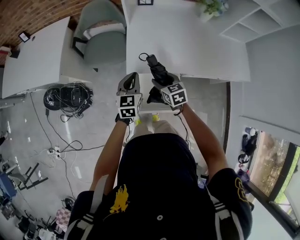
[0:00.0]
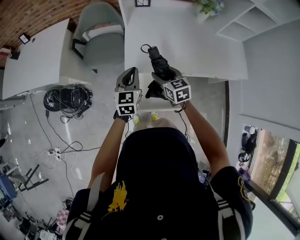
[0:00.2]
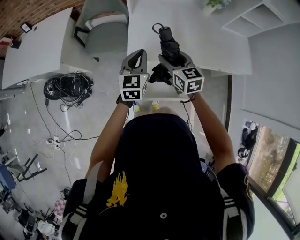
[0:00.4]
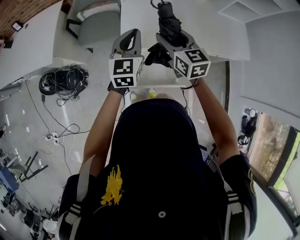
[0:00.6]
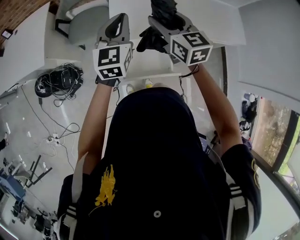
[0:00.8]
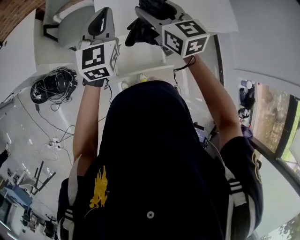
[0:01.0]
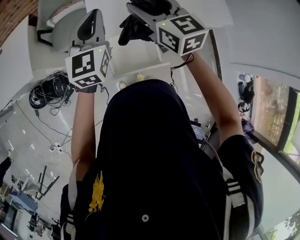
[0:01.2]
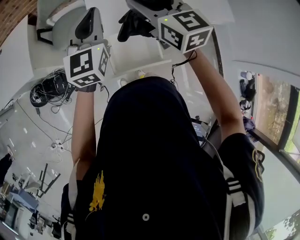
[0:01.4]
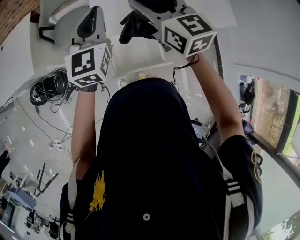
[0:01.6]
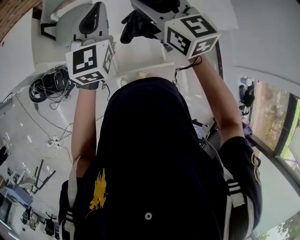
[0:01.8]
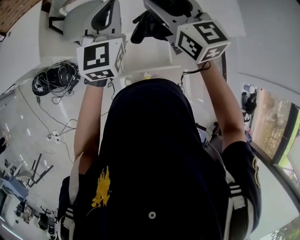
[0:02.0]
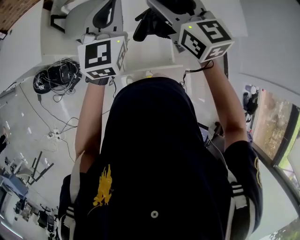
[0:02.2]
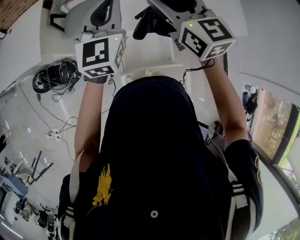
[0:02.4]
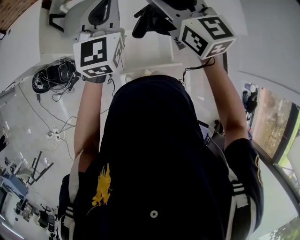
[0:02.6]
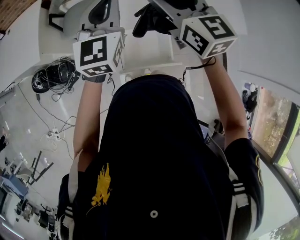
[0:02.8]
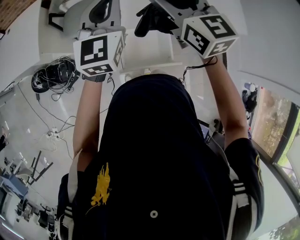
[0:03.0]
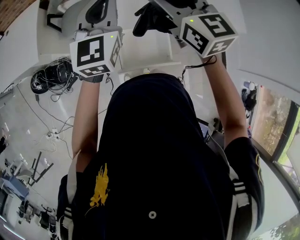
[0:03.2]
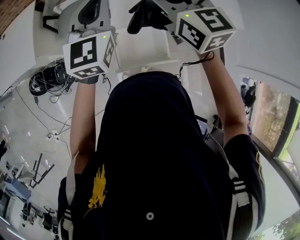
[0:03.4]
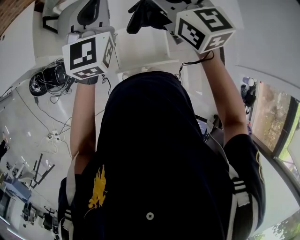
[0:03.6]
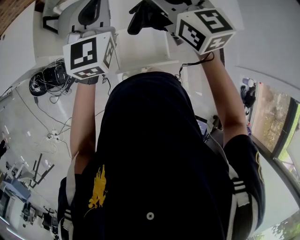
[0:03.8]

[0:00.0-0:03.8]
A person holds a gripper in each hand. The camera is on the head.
0:00.0 to 0:01.2: Both grippers move upward, roughly 25 cm. The left gripper changes its angle by some 20 degrees, while the right gripper changes its angle by approximately 30 degrees.
0:01.2 to 0:02.6: The right gripper ends up roughly 5 cm from where it was.
0:02.6 to 0:03.8: Neither gripper changes place.

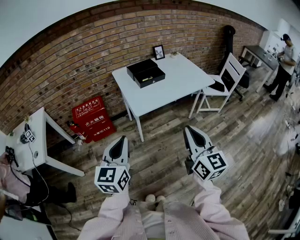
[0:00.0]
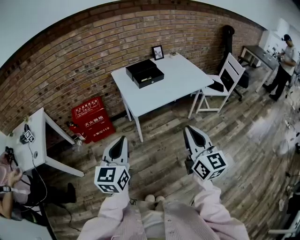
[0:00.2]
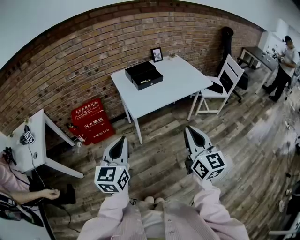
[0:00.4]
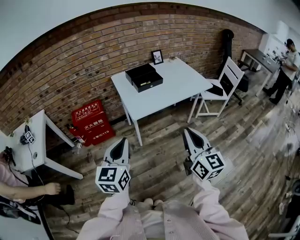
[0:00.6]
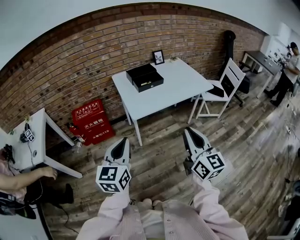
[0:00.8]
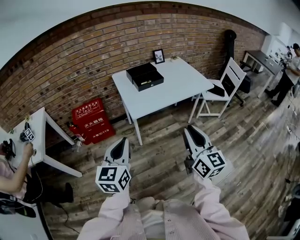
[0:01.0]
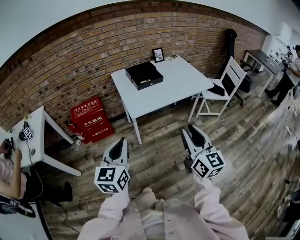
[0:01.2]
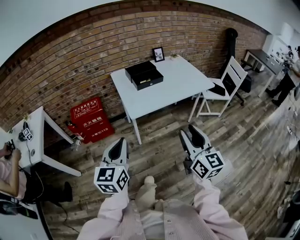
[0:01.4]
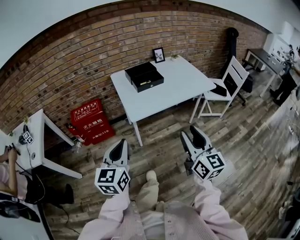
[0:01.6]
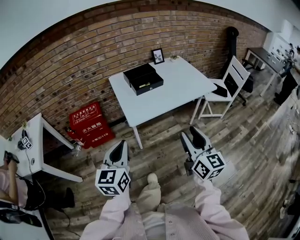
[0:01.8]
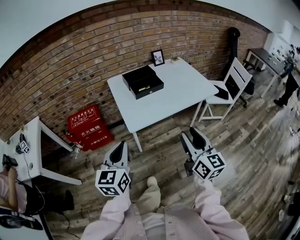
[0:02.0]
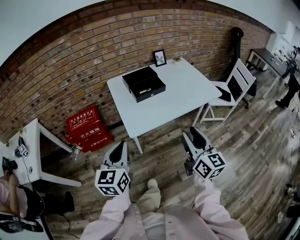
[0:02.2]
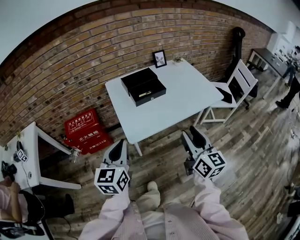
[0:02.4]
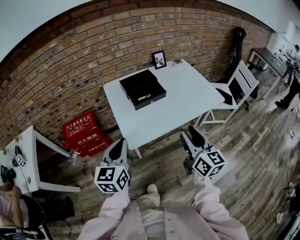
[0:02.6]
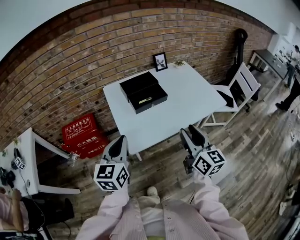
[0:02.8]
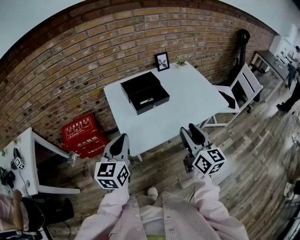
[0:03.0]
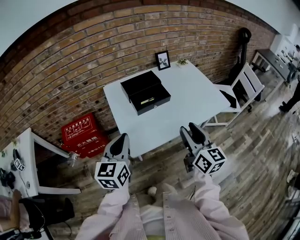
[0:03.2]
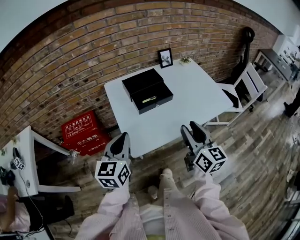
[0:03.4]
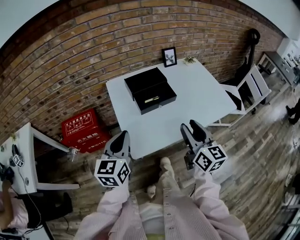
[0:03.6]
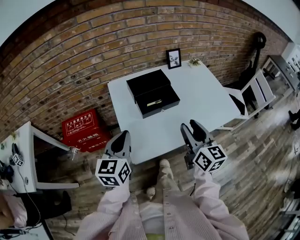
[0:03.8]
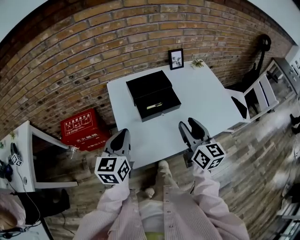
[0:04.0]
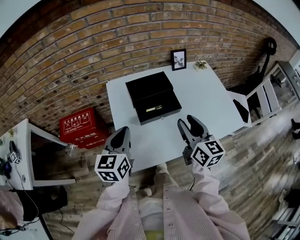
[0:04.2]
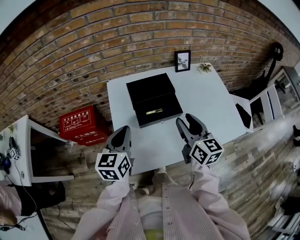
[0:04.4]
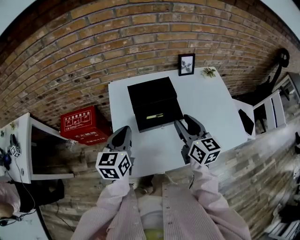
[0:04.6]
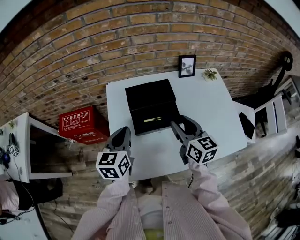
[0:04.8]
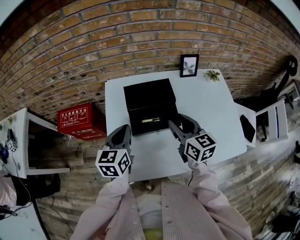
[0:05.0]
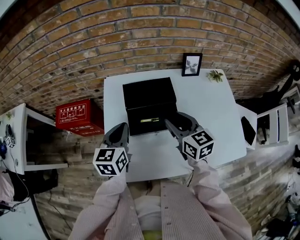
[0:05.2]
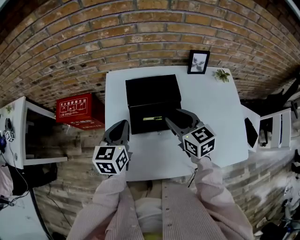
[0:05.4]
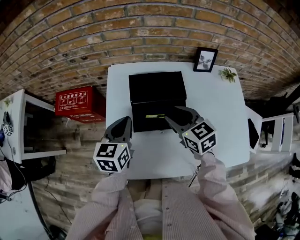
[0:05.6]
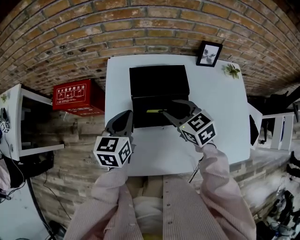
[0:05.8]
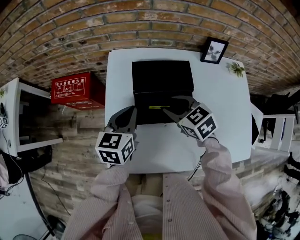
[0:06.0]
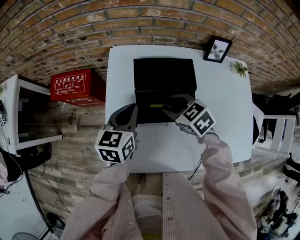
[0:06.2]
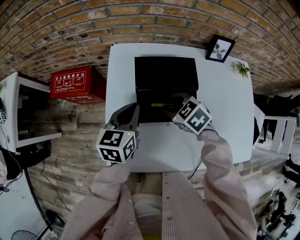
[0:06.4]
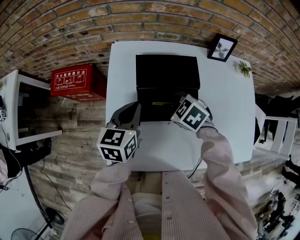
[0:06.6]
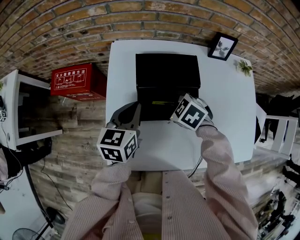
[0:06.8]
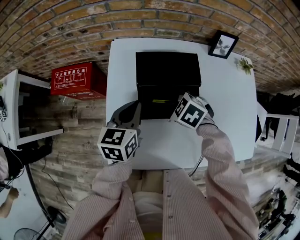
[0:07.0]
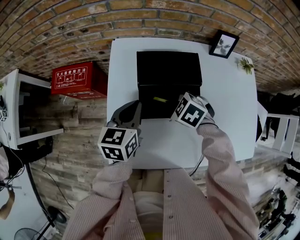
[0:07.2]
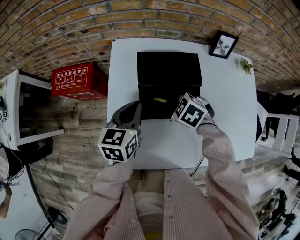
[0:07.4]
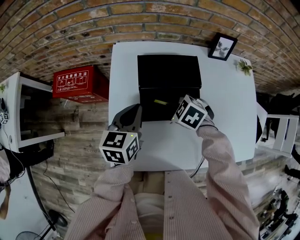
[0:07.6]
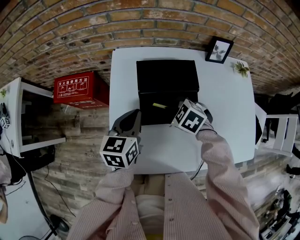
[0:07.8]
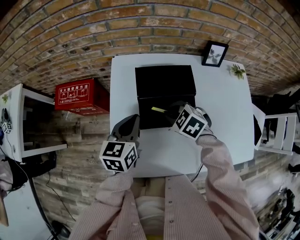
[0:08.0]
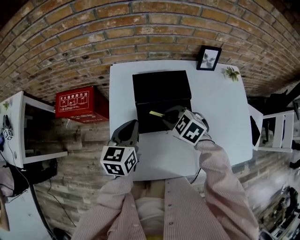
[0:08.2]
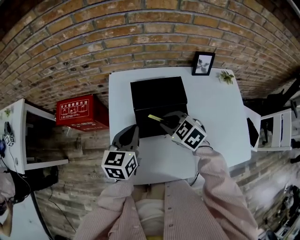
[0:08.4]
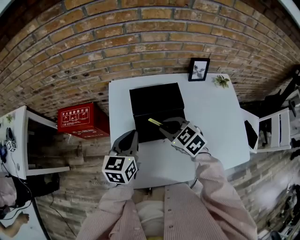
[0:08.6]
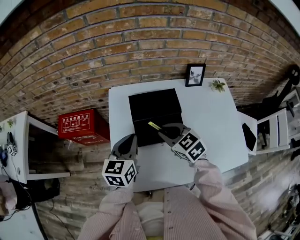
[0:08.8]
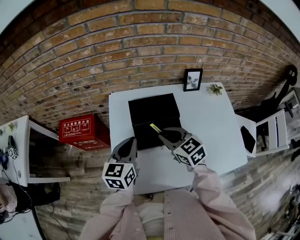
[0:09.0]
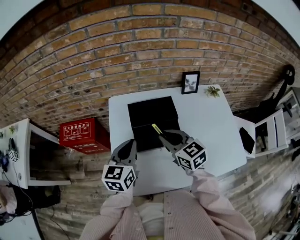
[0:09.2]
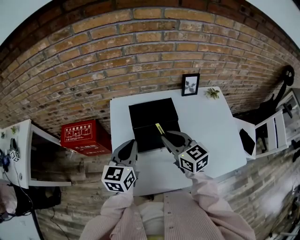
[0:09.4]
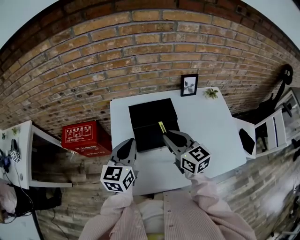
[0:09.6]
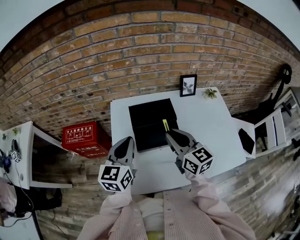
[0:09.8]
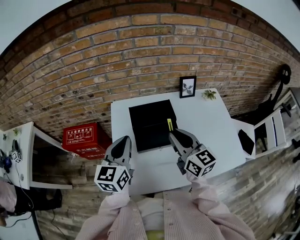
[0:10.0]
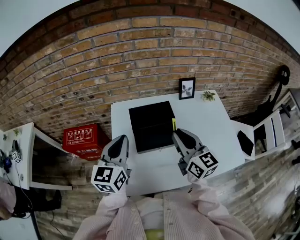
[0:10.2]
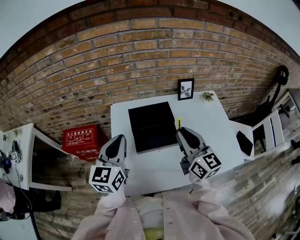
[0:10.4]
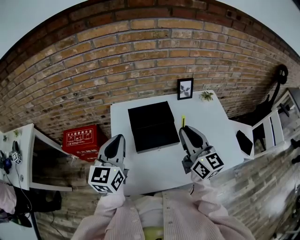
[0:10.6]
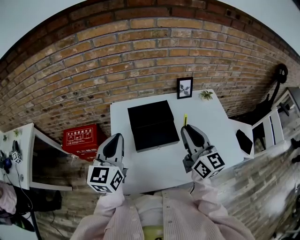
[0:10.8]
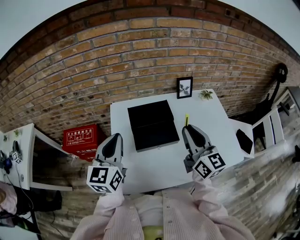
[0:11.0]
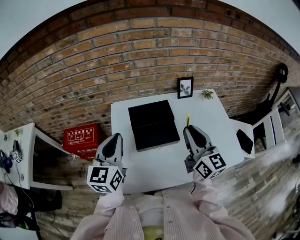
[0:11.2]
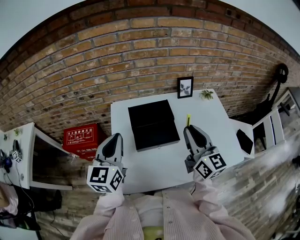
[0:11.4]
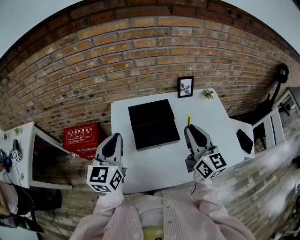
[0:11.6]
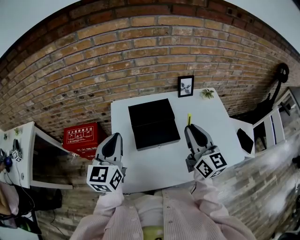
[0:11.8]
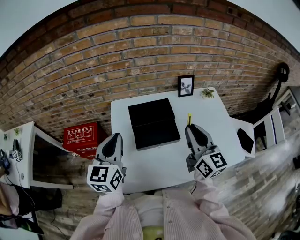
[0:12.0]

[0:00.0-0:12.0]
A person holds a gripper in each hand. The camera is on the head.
0:00.0 to 0:01.6: The left gripper shifts by approximately 5 cm; the right gripper shifts some 5 cm to the right, and opens.
0:01.6 to 0:03.0: The two grippers go approximately 25 cm forward.
0:03.0 to 0:04.4: Both grippers move forward, approximately 20 cm.
0:04.4 to 0:06.0: Both grippers travel together forward and downward, about 15 cm. The right gripper tips its fingers downward by approximately 30 degrees.
0:06.0 to 0:07.6: The right gripper is displaced downward by roughly 10 cm, swivels roughly 30 degrees, and closes its fingers.
0:07.6 to 0:09.0: The right gripper shifts some 15 cm upward, and tips its fingers upward by about 40 degrees. Meanwhile the left gripper is displaced upward by some 5 cm.
0:09.0 to 0:10.4: The left gripper is displaced upward by about 10 cm, while the right gripper goes some 15 cm upward, to the right and backward, and tilts its fingers some 30 degrees upward.
0:10.4 to 0:12.0: The grippers make only small movements.

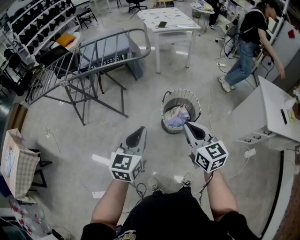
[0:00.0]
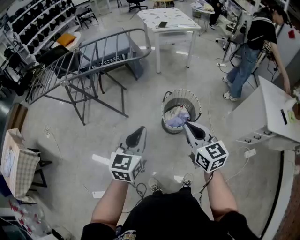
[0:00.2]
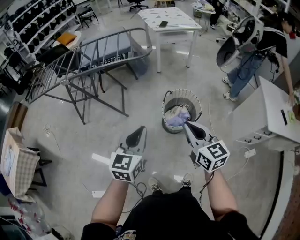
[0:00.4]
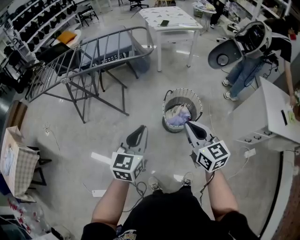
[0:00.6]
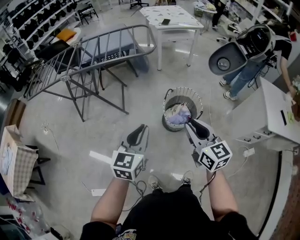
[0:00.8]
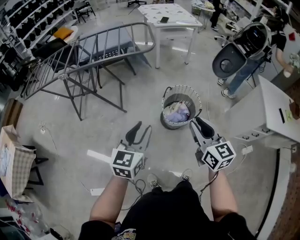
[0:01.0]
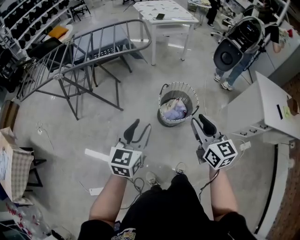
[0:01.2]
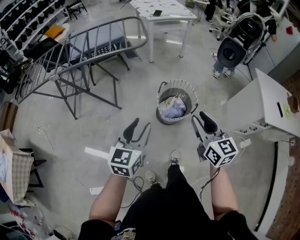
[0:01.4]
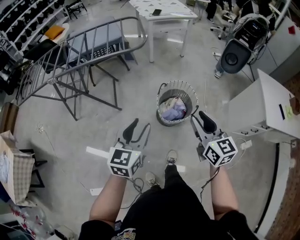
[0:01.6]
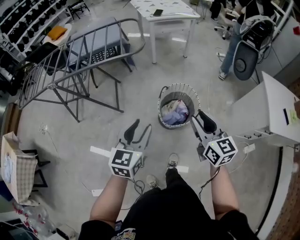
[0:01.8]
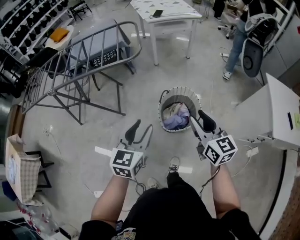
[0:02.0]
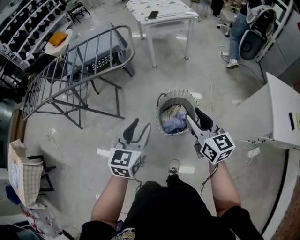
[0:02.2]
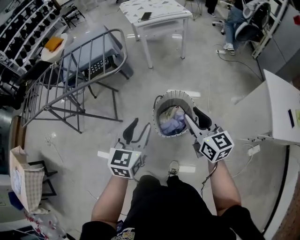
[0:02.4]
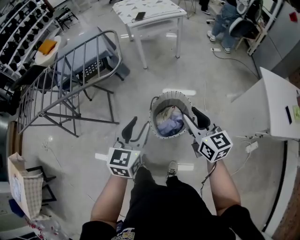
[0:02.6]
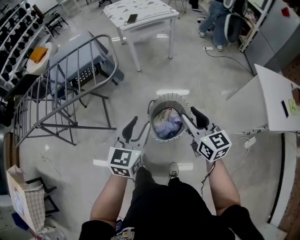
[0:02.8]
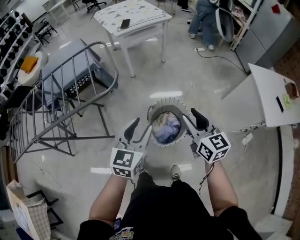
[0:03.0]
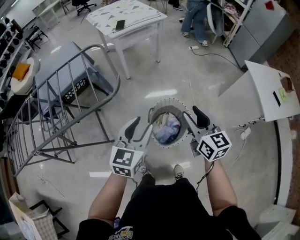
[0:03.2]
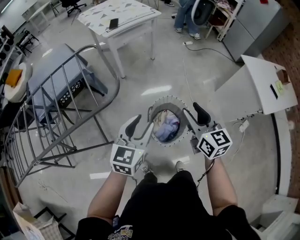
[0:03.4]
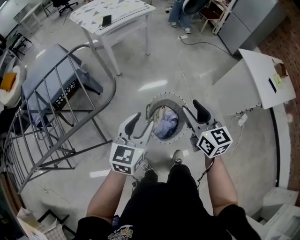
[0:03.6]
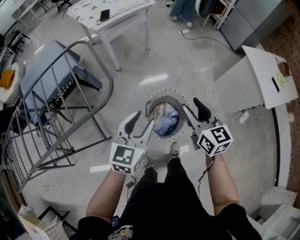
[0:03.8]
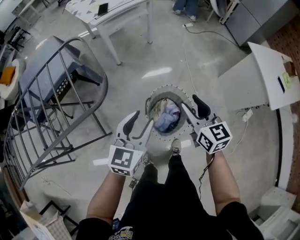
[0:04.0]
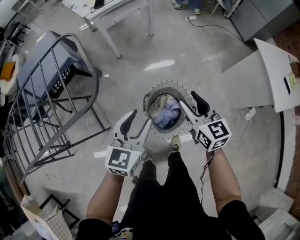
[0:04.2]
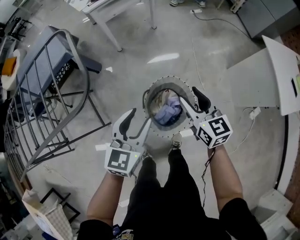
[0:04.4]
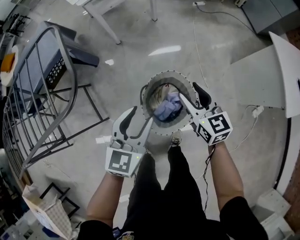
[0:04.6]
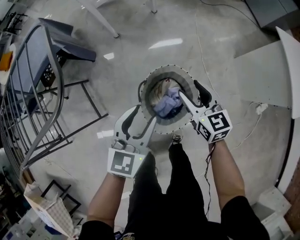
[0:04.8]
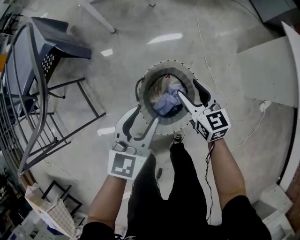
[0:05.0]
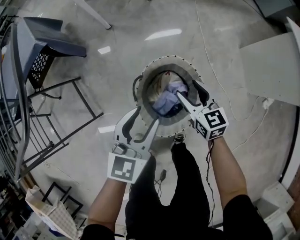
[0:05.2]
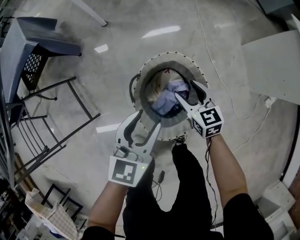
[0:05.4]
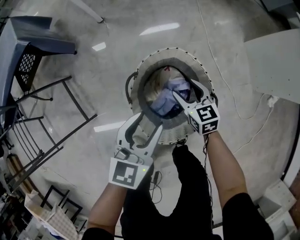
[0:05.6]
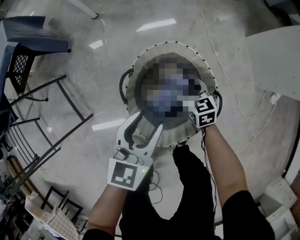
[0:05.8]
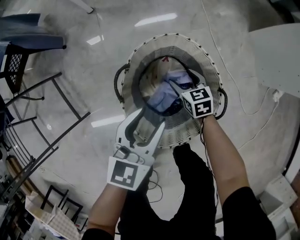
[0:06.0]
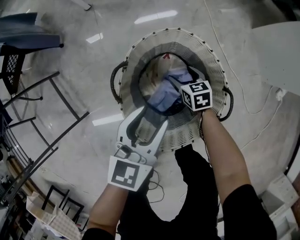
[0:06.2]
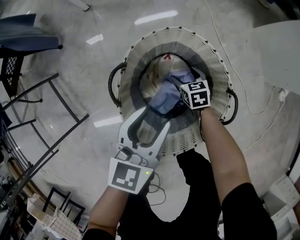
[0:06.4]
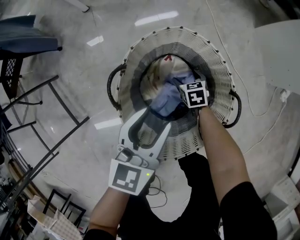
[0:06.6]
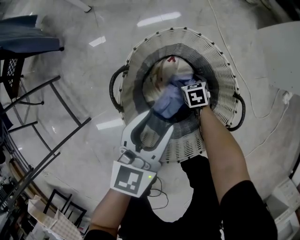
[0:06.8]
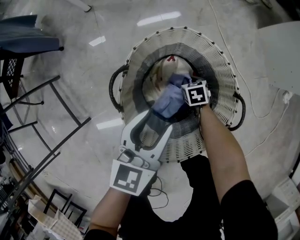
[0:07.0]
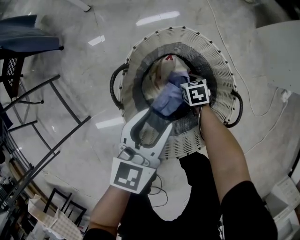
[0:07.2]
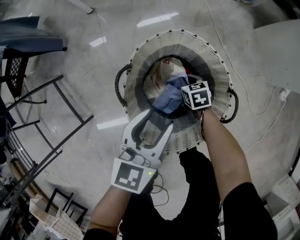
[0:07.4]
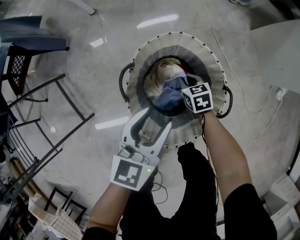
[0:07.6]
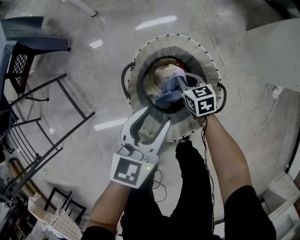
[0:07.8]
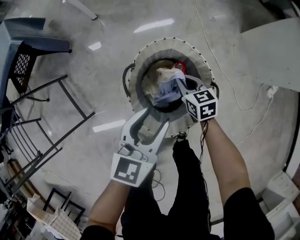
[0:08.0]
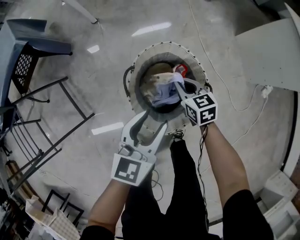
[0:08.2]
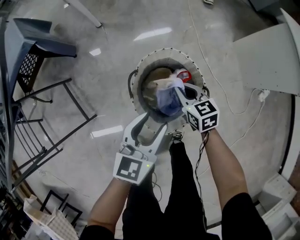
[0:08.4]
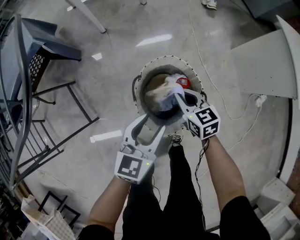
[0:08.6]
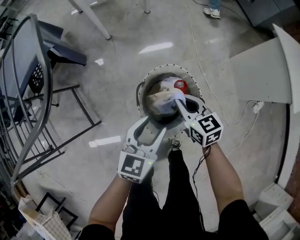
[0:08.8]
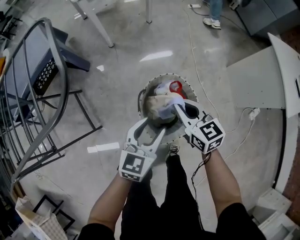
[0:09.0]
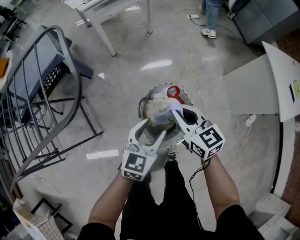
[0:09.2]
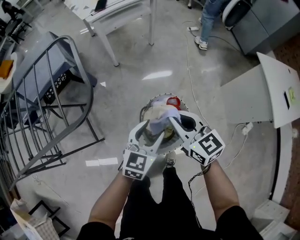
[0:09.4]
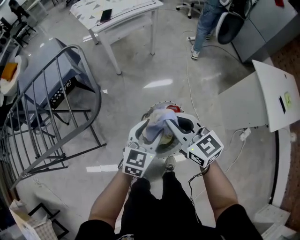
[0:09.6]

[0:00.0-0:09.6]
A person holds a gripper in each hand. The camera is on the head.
0:00.0 to 0:01.6: Both grippers move forward, roughly 5 cm. The right gripper opens up. The left gripper opens its fingers.
0:01.6 to 0:03.2: The two grippers go about 30 cm forward.
0:03.2 to 0:04.8: The left gripper heads downward, forward and to the right, covering about 25 cm. The right gripper shifts approximately 30 cm downward and forward.
0:04.8 to 0:06.4: The left gripper is displaced downward by about 35 cm. The right gripper travels downward by approximately 50 cm, and tips its fingers downward by about 30 degrees.
0:06.4 to 0:08.0: The left gripper is displaced upward by about 10 cm. The right gripper moves upward, about 20 cm, and closes up.
0:08.0 to 0:09.6: The left gripper heads upward, covering some 30 cm, while the right gripper is displaced upward by some 50 cm, and turns by approximately 40 degrees.
